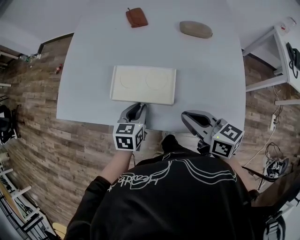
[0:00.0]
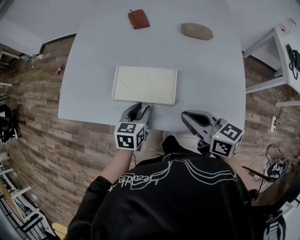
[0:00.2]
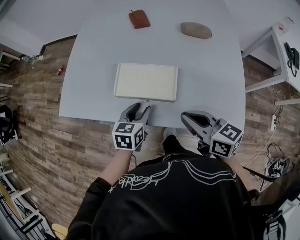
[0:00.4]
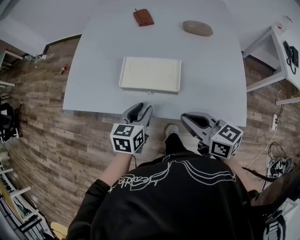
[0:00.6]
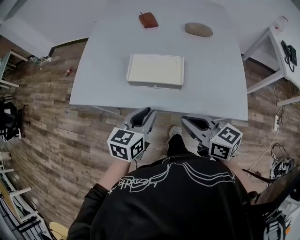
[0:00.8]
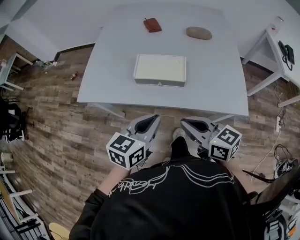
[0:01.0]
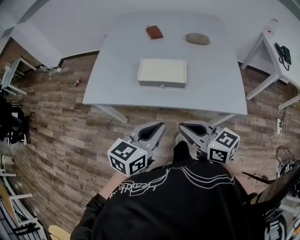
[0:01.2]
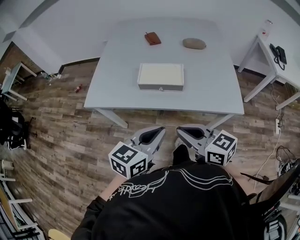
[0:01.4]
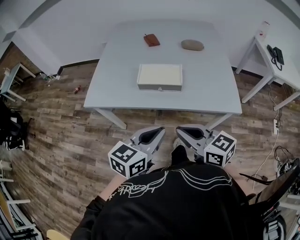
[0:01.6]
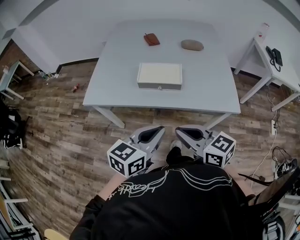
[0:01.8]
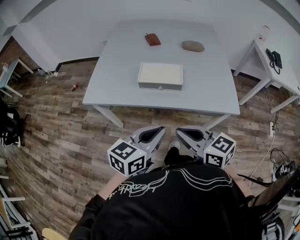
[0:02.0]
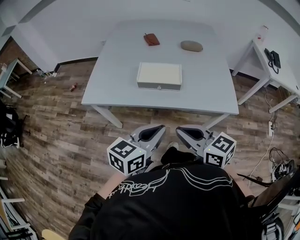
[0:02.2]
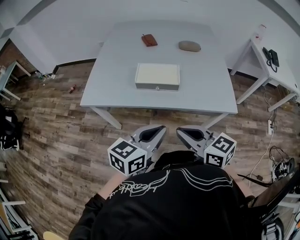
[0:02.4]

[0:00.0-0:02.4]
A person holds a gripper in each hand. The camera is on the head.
0:00.0 to 0:01.2: The right gripper moves backward and to the left, about 20 cm, while the left gripper is displaced backward and upward by approximately 25 cm, changes its angle by roughly 30 degrees, and opens and closes again.
0:01.2 to 0:02.4: The grippers move only a little.

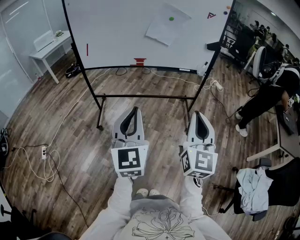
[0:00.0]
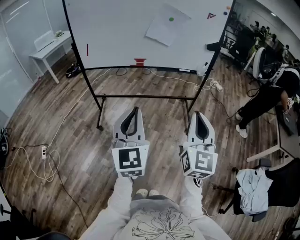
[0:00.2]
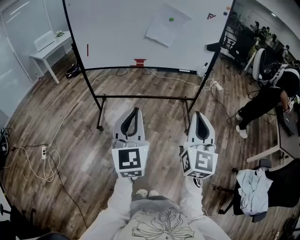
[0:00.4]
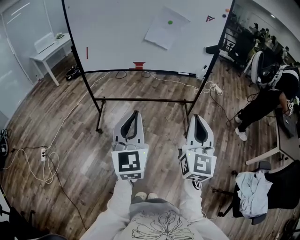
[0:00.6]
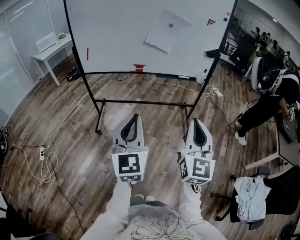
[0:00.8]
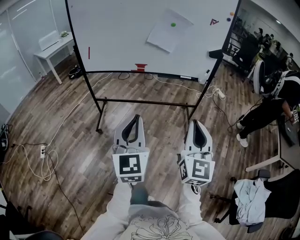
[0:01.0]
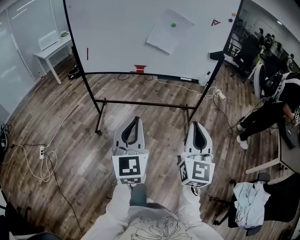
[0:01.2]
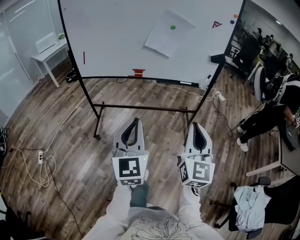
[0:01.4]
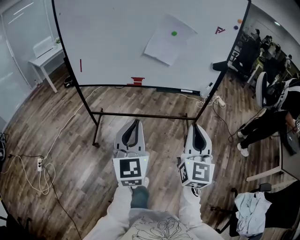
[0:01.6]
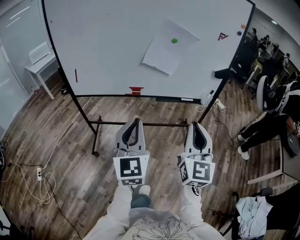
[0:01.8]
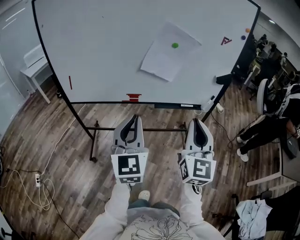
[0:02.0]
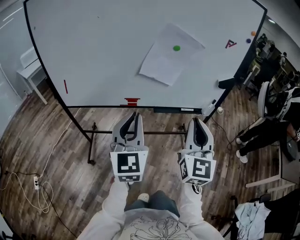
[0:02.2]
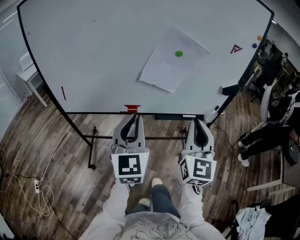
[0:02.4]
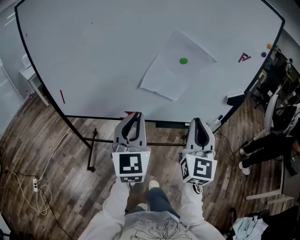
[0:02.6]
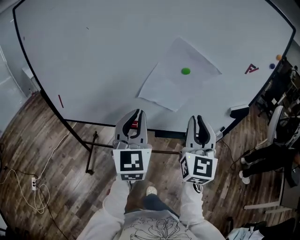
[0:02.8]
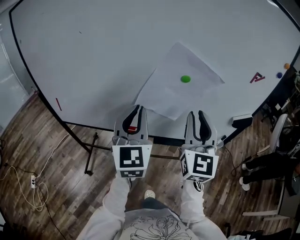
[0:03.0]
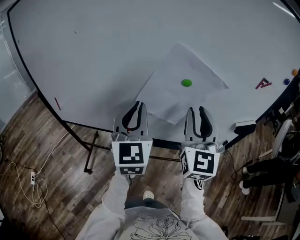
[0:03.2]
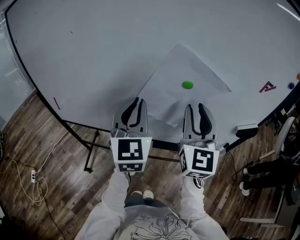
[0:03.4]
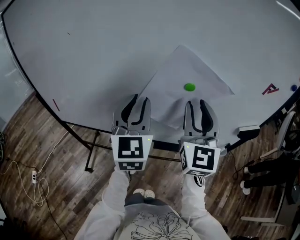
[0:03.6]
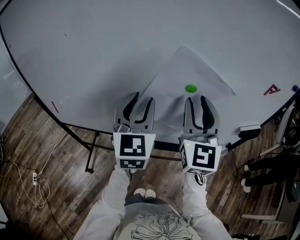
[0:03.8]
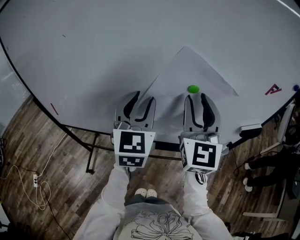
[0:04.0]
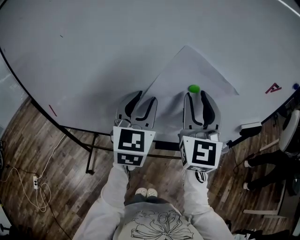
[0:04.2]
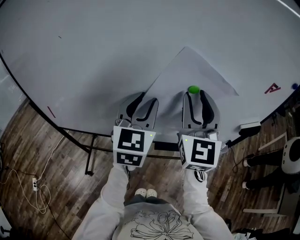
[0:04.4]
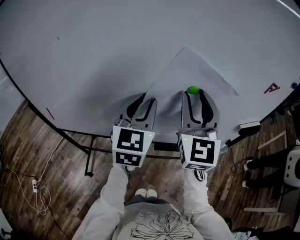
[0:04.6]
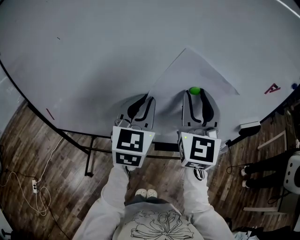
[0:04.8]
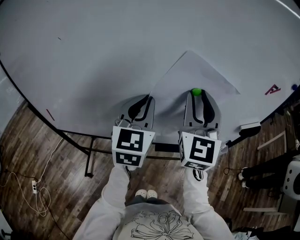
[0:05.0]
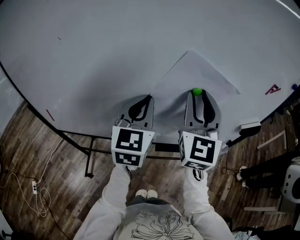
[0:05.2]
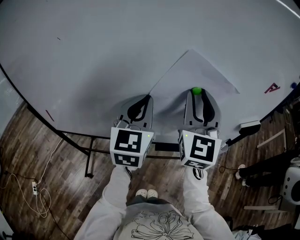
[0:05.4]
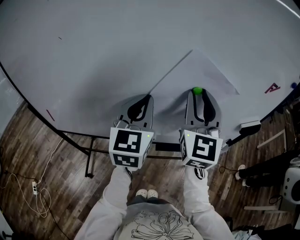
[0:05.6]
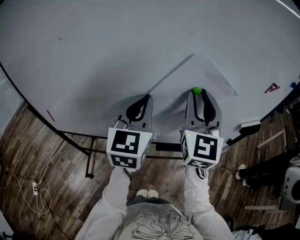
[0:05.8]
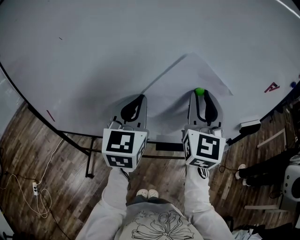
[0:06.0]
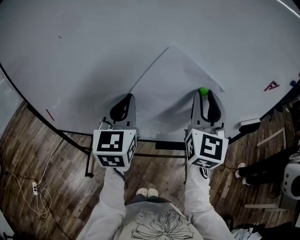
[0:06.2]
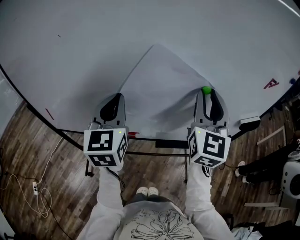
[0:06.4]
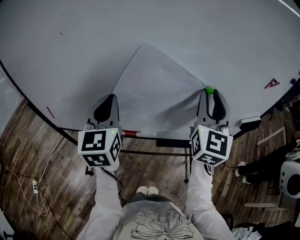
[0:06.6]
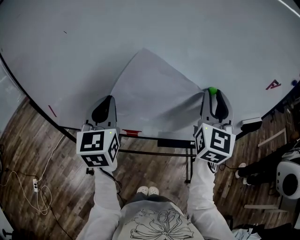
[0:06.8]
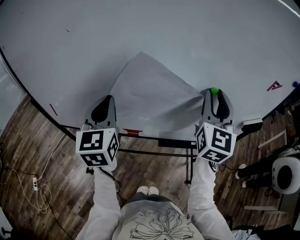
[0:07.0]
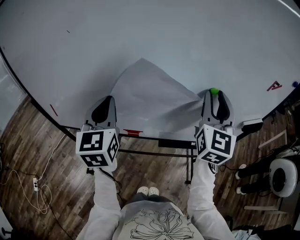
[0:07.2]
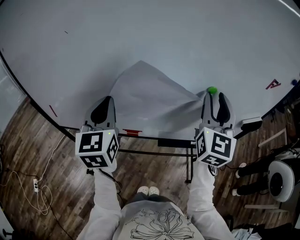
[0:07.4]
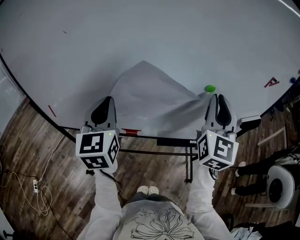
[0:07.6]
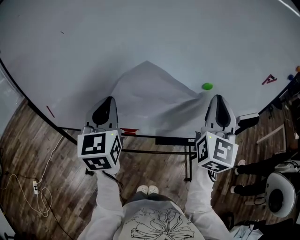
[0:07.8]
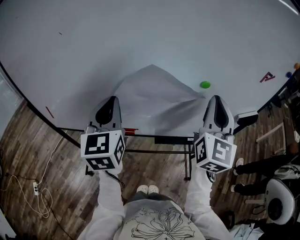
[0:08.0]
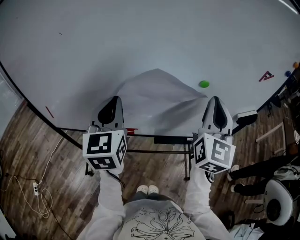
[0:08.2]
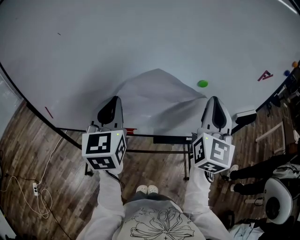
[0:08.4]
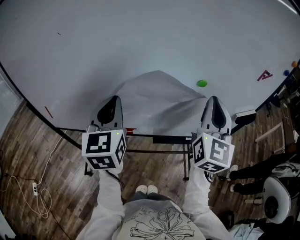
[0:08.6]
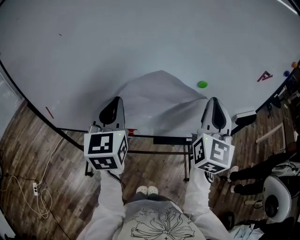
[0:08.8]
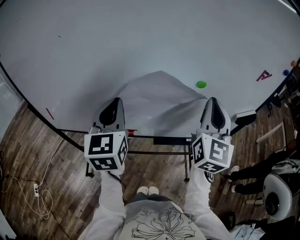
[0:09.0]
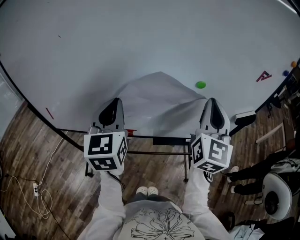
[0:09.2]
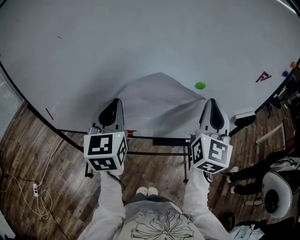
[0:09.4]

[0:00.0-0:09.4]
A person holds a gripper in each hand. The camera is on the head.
0:00.0 to 0:01.6: The grippers both shift forward by about 15 cm.
0:01.6 to 0:03.2: The two grippers travel together, forward, some 50 cm. The right gripper opens.
0:03.2 to 0:04.8: The two grippers go some 10 cm forward. The left gripper opens, then closes again.
0:04.8 to 0:06.2: The left gripper travels to the left by about 5 cm.
0:06.2 to 0:07.8: The right gripper moves some 5 cm, and closes. Meanwhile the left gripper travels to the left by approximately 5 cm.
0:07.8 to 0:09.4: The grippers stay close to where they were, moving slightly.

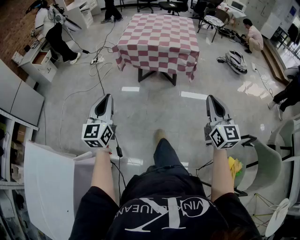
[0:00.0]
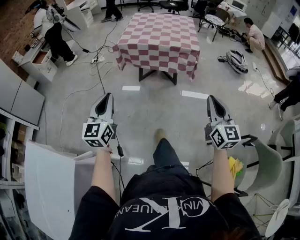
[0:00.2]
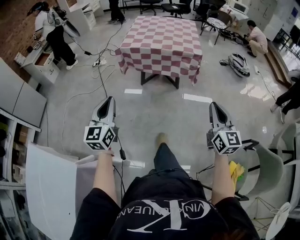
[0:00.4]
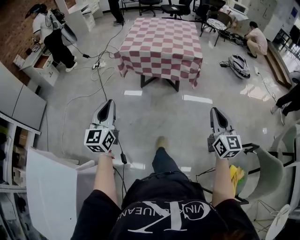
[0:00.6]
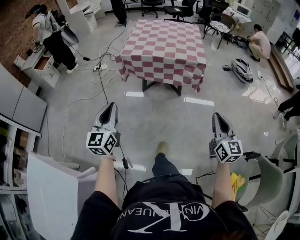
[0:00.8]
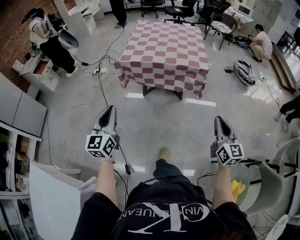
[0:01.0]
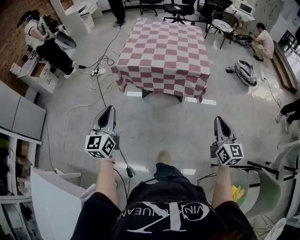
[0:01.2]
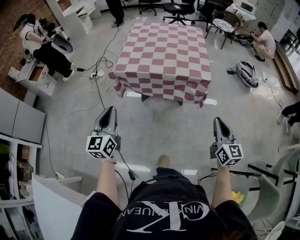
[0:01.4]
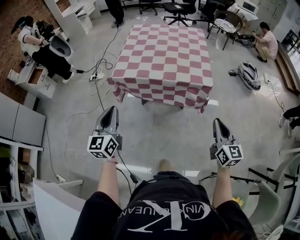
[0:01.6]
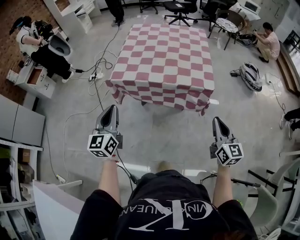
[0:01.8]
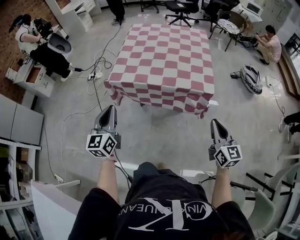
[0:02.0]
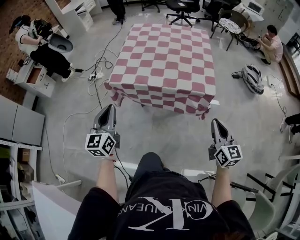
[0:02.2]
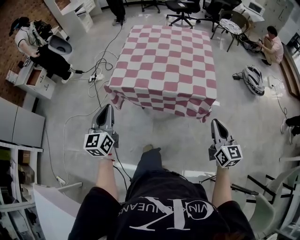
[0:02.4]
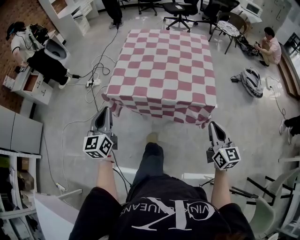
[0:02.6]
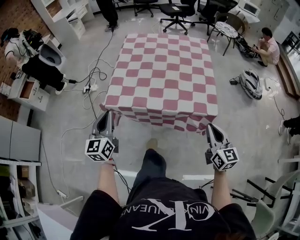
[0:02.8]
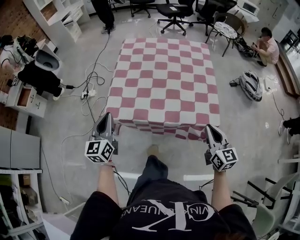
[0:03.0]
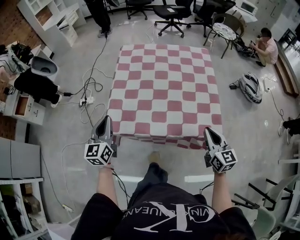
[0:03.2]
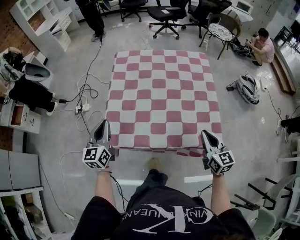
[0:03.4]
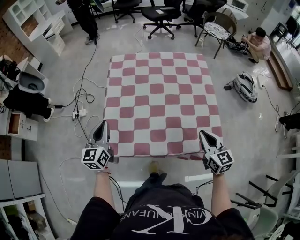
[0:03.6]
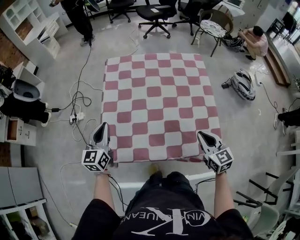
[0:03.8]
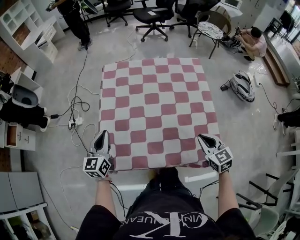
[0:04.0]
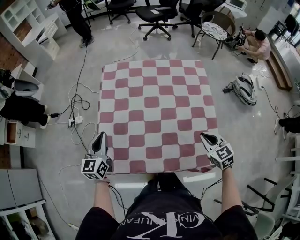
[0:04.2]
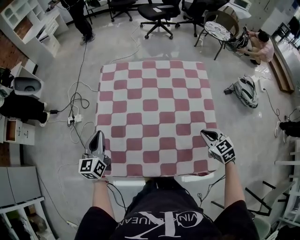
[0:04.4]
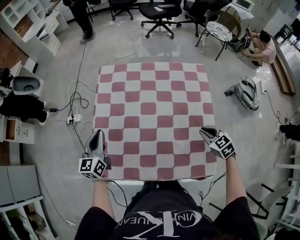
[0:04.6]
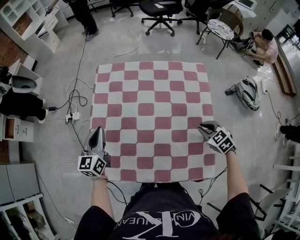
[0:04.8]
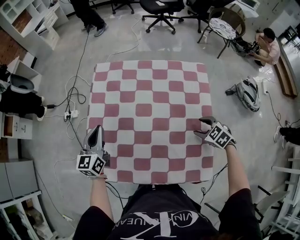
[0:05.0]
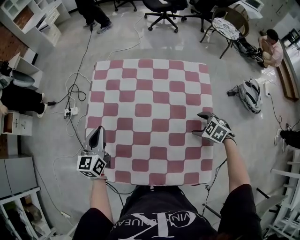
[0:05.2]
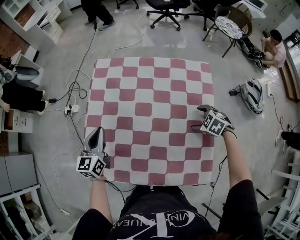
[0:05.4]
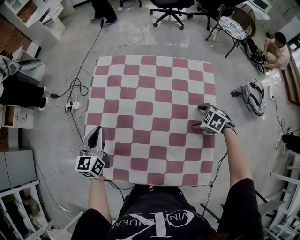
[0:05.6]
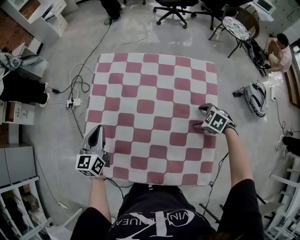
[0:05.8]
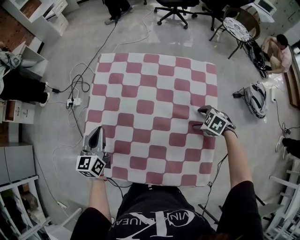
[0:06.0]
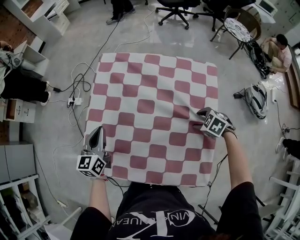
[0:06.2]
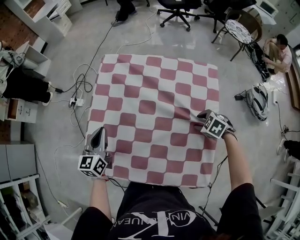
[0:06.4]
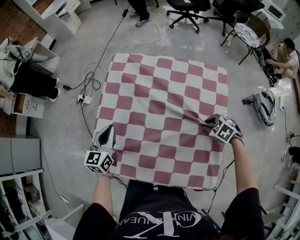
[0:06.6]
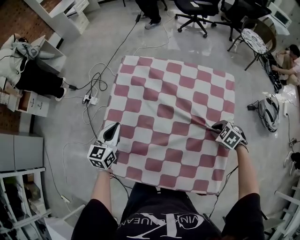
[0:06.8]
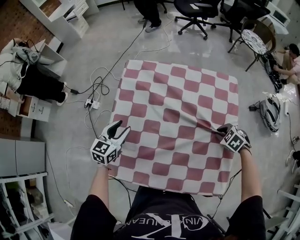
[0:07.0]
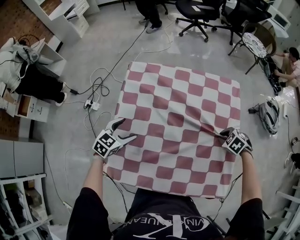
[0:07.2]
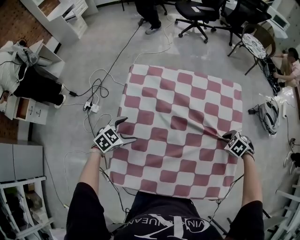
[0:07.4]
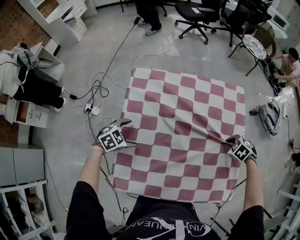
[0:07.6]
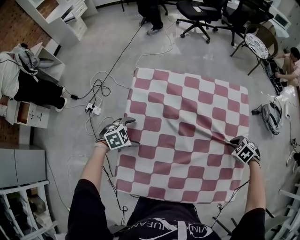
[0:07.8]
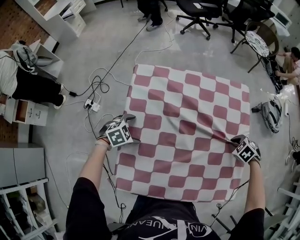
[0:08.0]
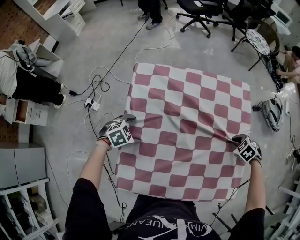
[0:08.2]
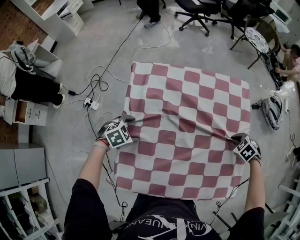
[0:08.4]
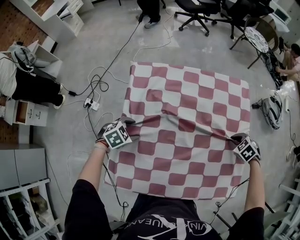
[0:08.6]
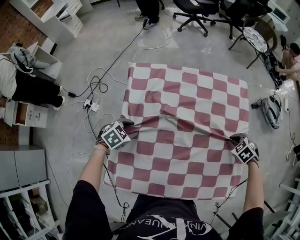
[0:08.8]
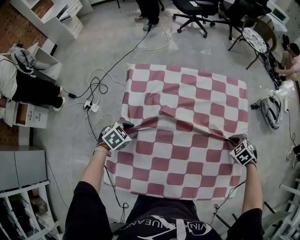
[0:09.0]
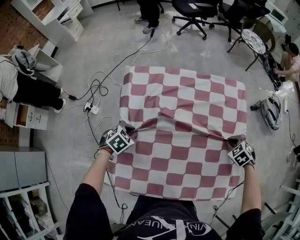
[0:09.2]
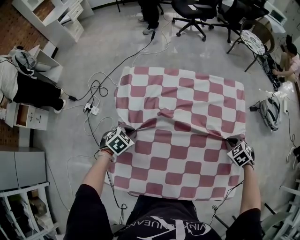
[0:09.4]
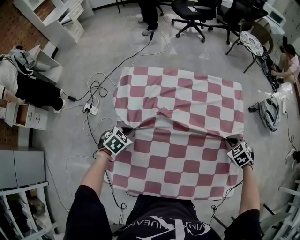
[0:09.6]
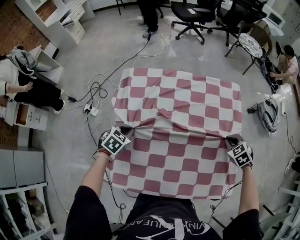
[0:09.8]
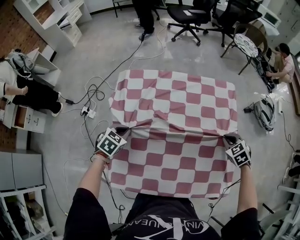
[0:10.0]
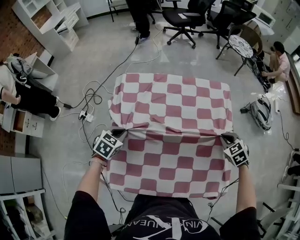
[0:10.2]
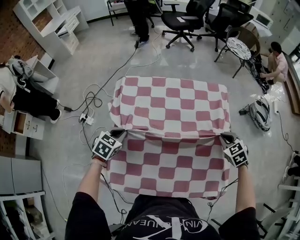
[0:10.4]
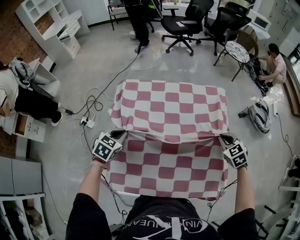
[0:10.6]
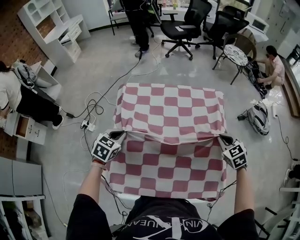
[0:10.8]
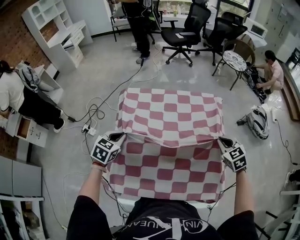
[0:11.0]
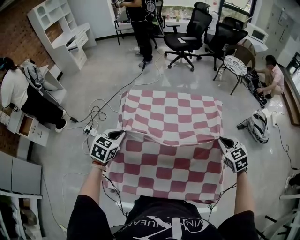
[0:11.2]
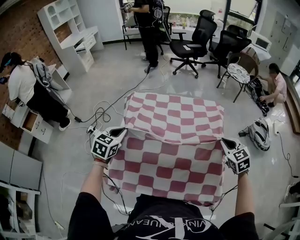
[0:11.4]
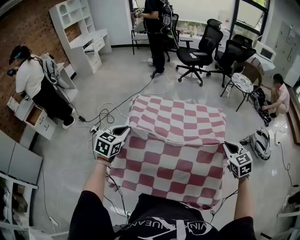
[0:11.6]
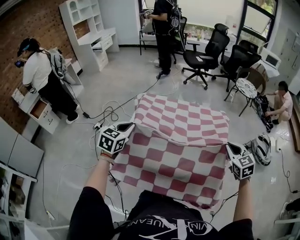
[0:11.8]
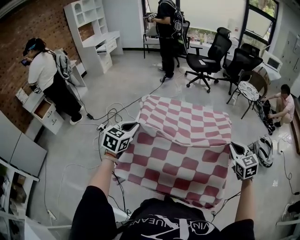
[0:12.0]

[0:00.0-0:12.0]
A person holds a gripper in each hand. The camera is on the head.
0:00.0 to 0:01.6: Both grippers travel together forward, approximately 30 cm.
0:01.6 to 0:03.0: The two grippers go roughly 25 cm forward.
0:03.0 to 0:04.4: Both grippers travel together forward, approximately 25 cm. The right gripper angles its fingers downward, by about 30 degrees.
0:04.4 to 0:06.0: The left gripper goes about 5 cm to the right; the right gripper travels forward, downward and to the right by some 15 cm, rotates about 40 degrees, and opens its fingers.
0:06.0 to 0:07.6: The right gripper closes, while the left gripper heads downward, covering approximately 15 cm, tips its fingers downward by roughly 40 degrees, and opens its fingers.
0:07.6 to 0:09.0: The left gripper closes its fingers.
0:09.0 to 0:10.4: The grippers both shift upward by roughly 10 cm. The left gripper changes its angle by some 20 degrees. The right gripper turns by some 20 degrees.
0:10.4 to 0:12.0: The two grippers go roughly 20 cm upward and backward. The right gripper turns by approximately 30 degrees; the left gripper swivels about 30 degrees.
